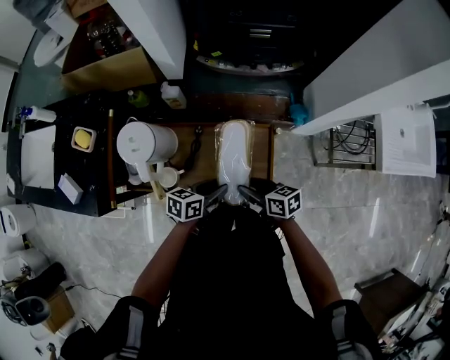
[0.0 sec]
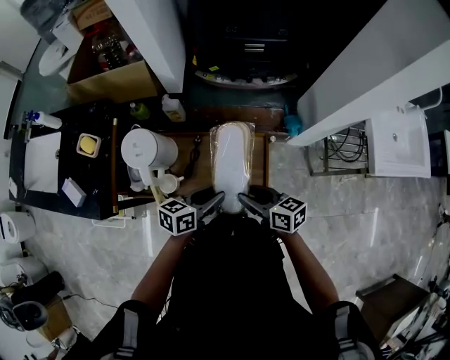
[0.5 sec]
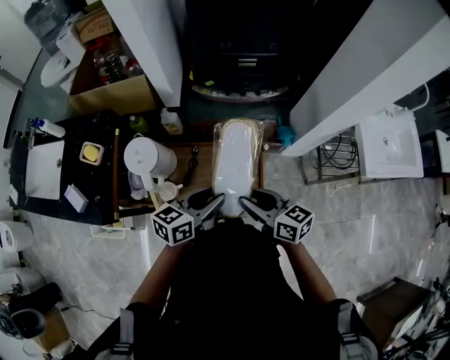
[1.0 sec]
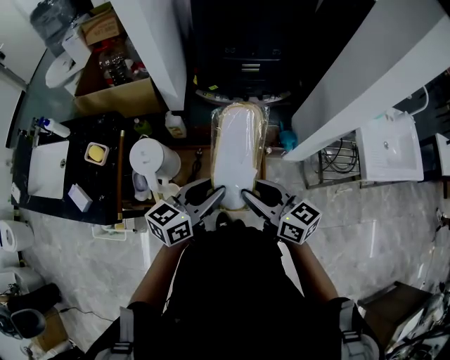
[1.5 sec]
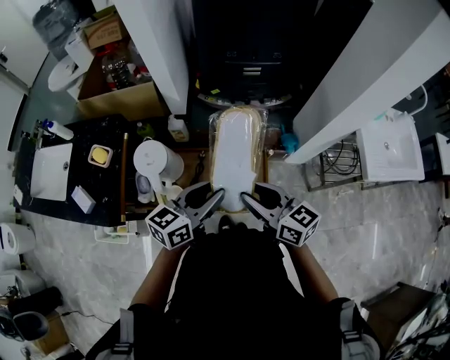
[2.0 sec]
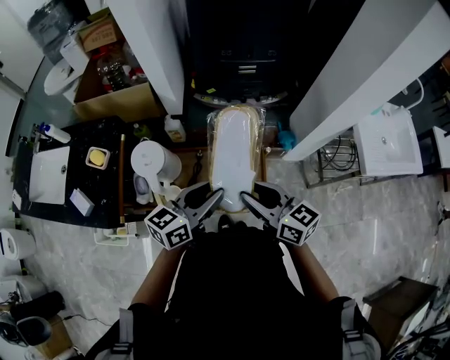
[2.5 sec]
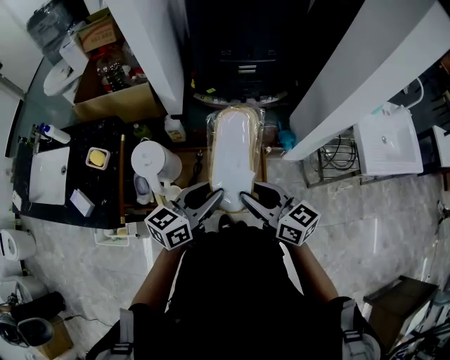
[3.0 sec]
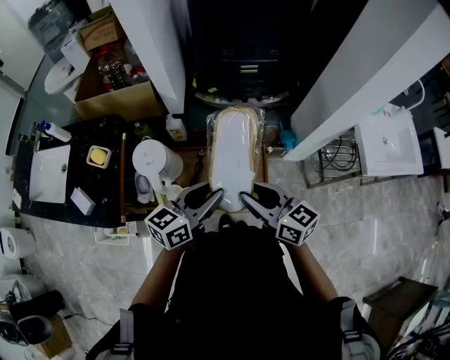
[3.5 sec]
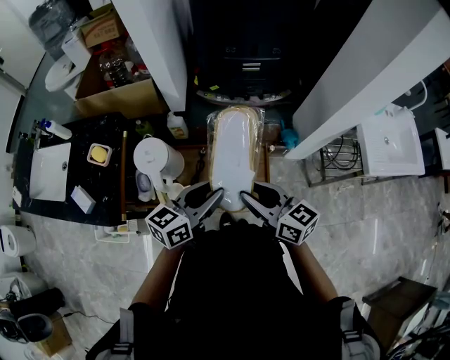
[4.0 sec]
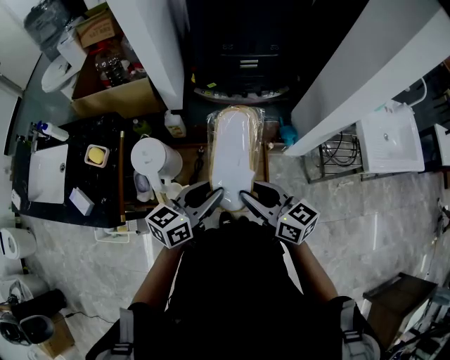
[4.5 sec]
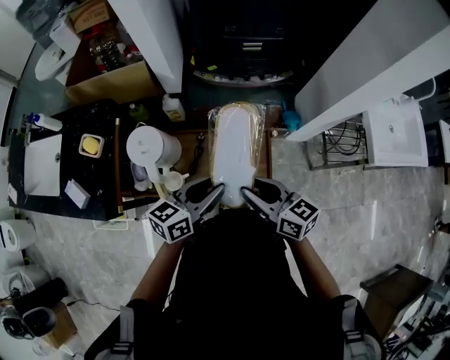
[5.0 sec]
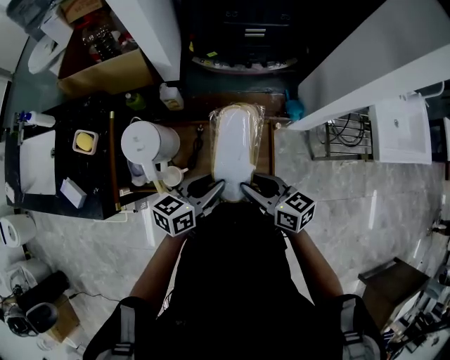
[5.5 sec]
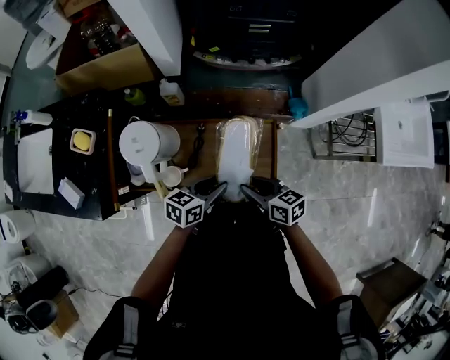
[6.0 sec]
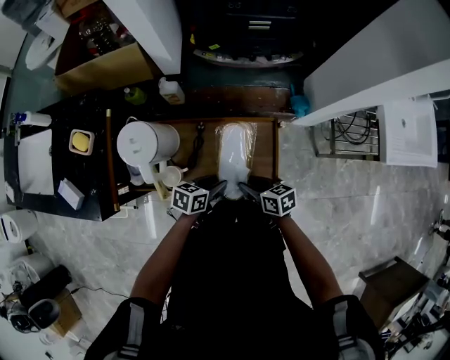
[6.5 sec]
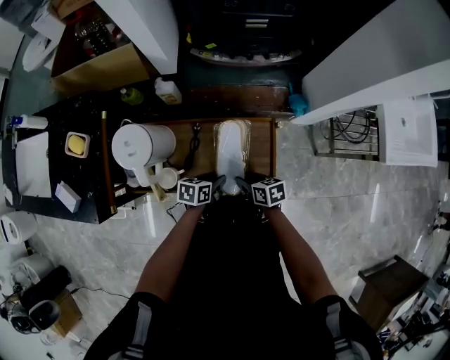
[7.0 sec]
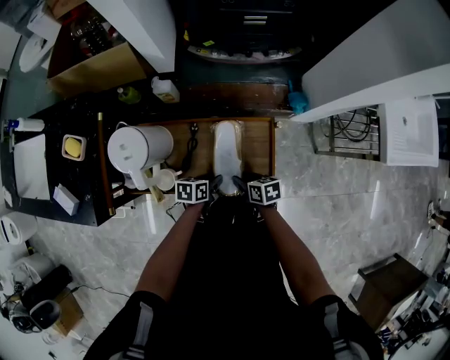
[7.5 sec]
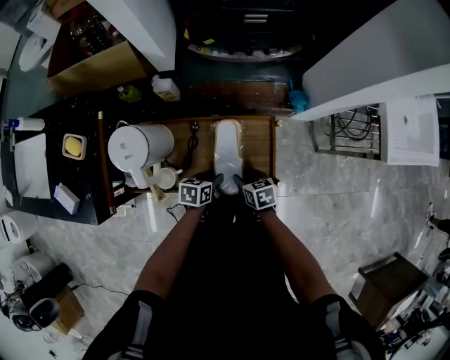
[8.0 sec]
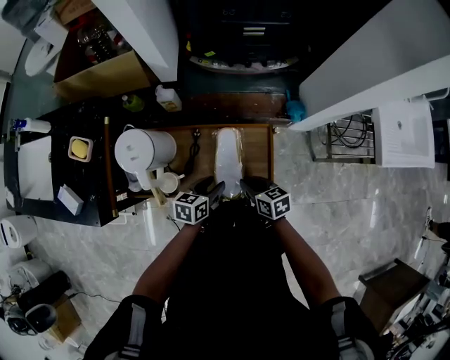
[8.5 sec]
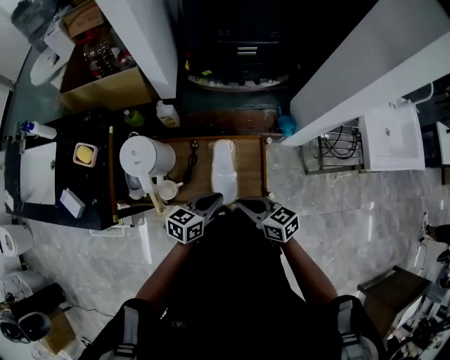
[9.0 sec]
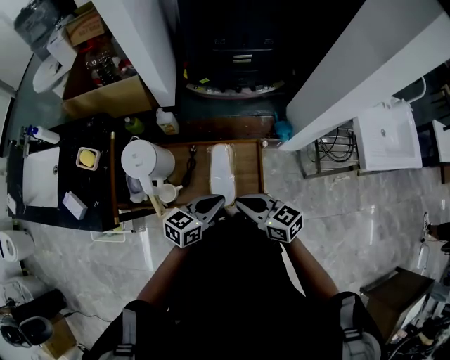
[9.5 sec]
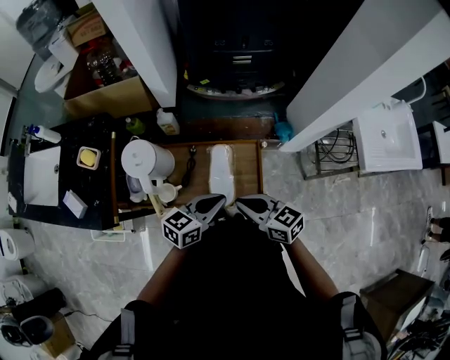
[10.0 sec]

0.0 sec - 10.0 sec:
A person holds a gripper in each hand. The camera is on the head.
0.0 sec - 2.0 sec: The grippers both shift upward by roughly 25 cm. The right gripper changes its angle by some 30 degrees. The left gripper changes its angle by some 30 degrees.
2.0 sec - 4.0 sec: Neither gripper changes place.
4.0 sec - 6.0 sec: The two grippers go approximately 20 cm downward. The right gripper rotates some 30 degrees; the left gripper rotates roughly 20 degrees.
6.0 sec - 8.0 sec: Both grippers move downward, approximately 15 cm. The left gripper rotates about 20 degrees, while the right gripper rotates roughly 20 degrees.
8.0 sec - 10.0 sec: The grippers both shift upward by approximately 25 cm. The right gripper points its fingers some 30 degrees further upward, and closes up. Meanwhile the left gripper tips its fingers upward by roughly 30 degrees, and closes.

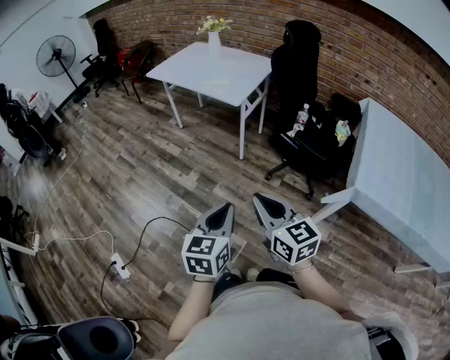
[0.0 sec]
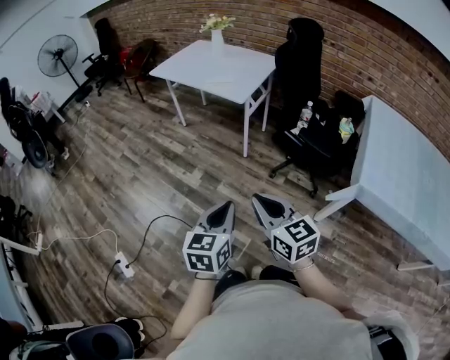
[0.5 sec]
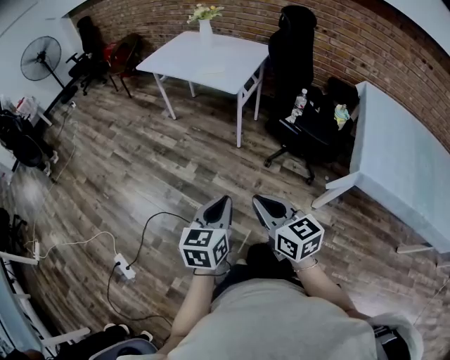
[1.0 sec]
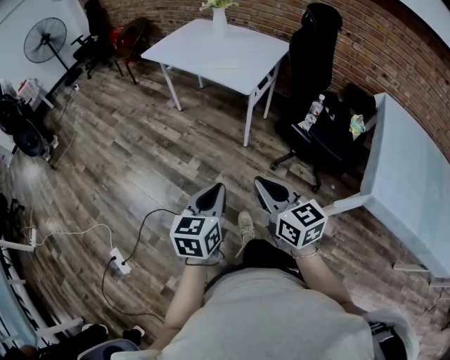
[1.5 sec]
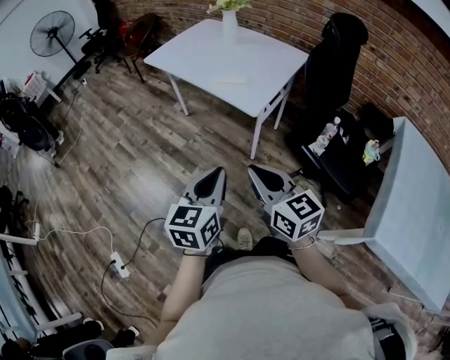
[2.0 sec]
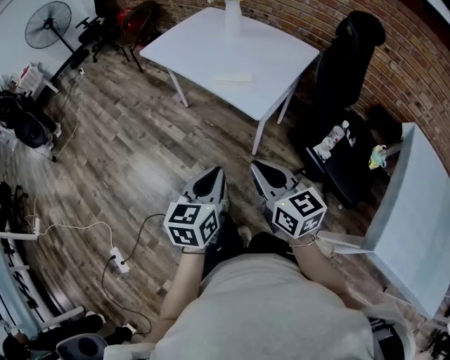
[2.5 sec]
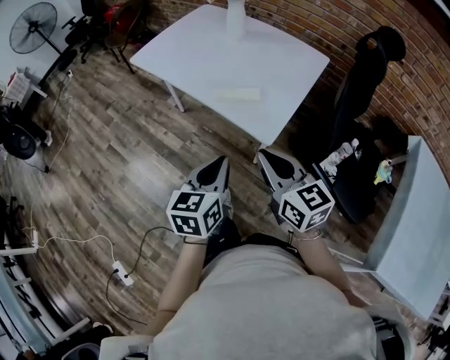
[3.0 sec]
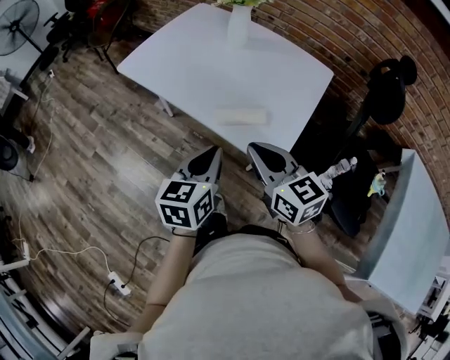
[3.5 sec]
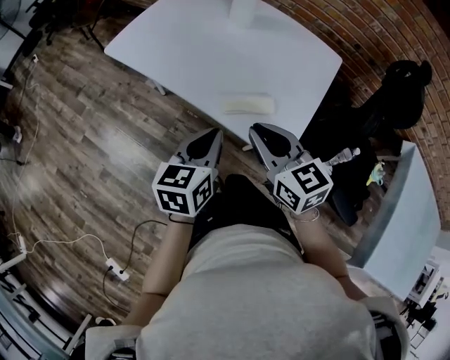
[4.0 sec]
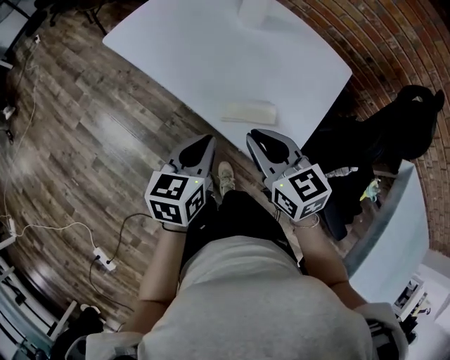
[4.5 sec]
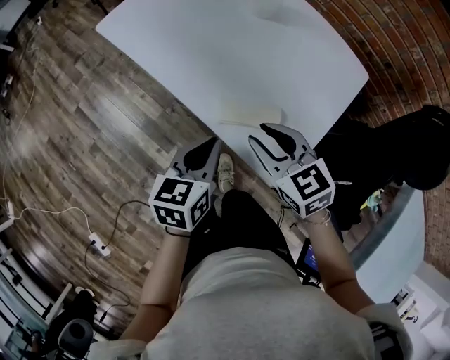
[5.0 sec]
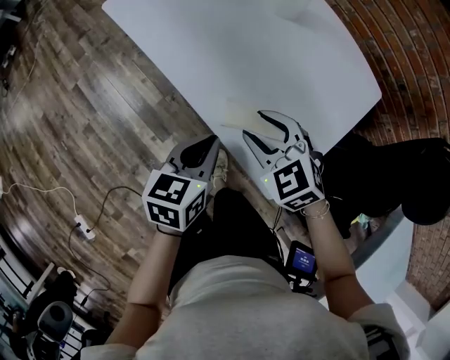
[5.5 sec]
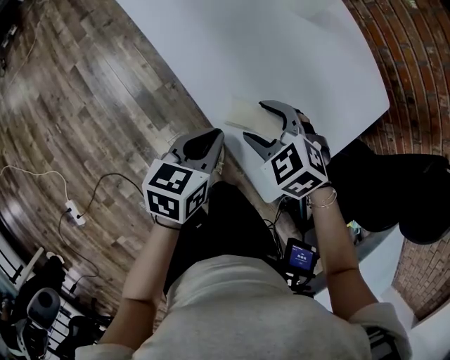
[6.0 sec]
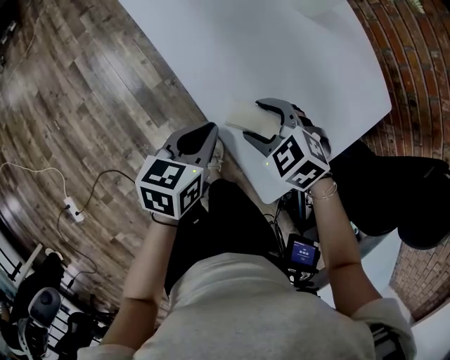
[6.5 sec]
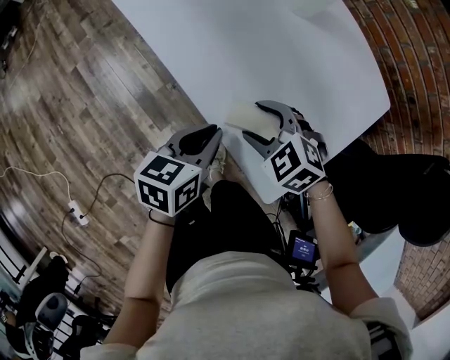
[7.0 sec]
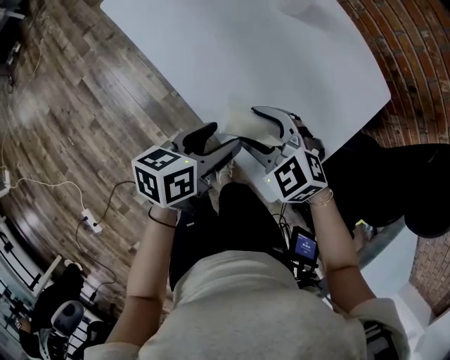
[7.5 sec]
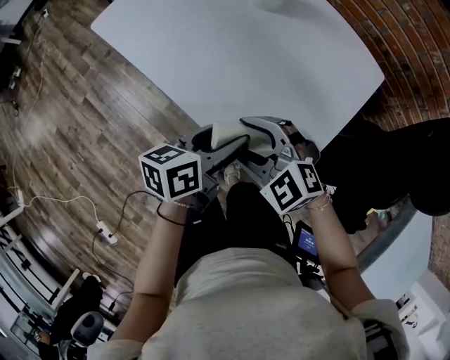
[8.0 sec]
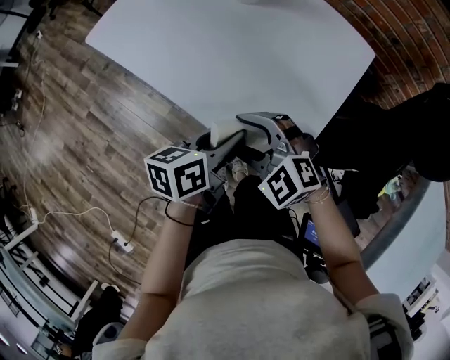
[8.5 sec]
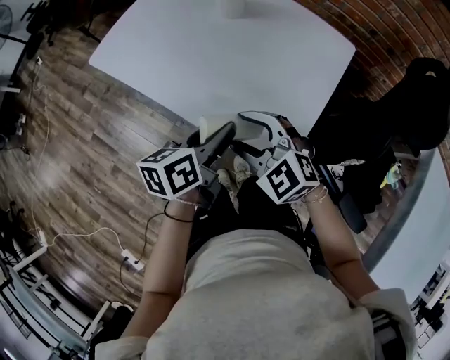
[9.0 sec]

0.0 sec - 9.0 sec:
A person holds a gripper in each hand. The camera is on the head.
0.0 sec - 2.0 sec: Both grippers move forward, some 30 cm.
2.0 sec - 4.5 sec: The two grippers travel together, forward, roughly 50 cm.
4.5 sec - 7.0 sec: The right gripper goes about 20 cm downward and forward, tips its fingers downward by some 30 degrees, and opens up. The left gripper goes approximately 10 cm downward and forward.
7.0 sec - 9.0 sec: The right gripper moves upward and backward, approximately 15 cm, and changes its angle by some 30 degrees; the left gripper goes about 10 cm upward and to the right, and opens its fingers.

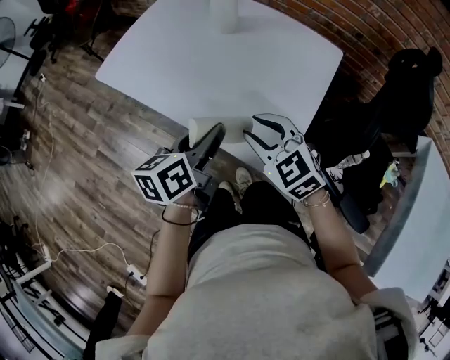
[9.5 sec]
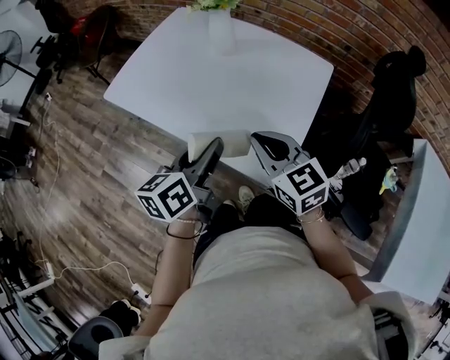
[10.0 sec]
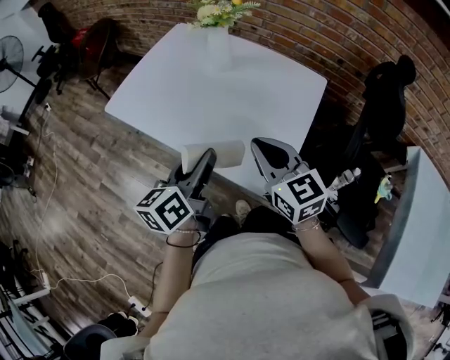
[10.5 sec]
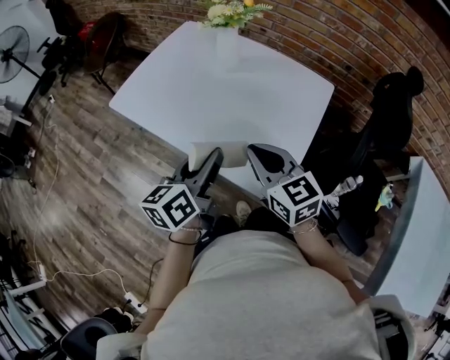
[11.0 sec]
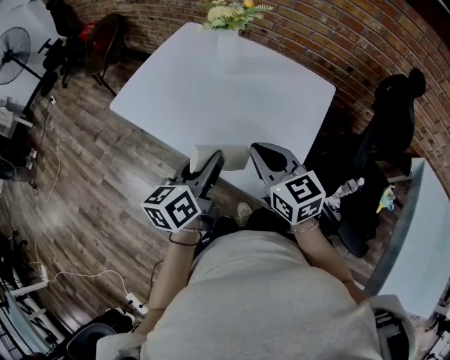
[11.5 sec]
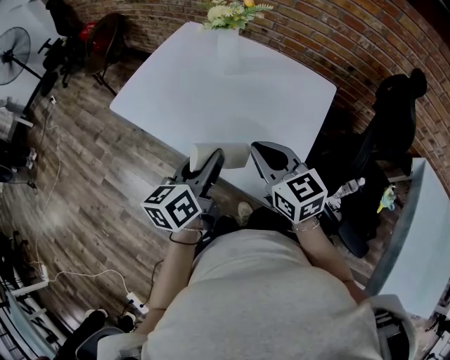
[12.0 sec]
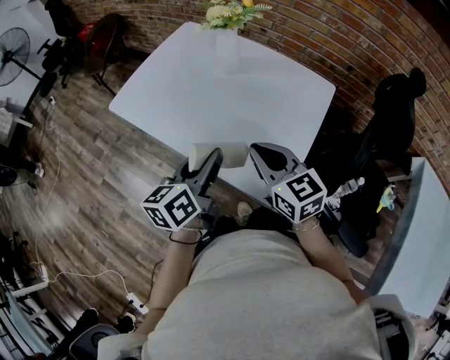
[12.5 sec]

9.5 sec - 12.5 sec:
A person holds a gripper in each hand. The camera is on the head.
9.5 sec - 11.0 sec: The grippers both shift upward by roughly 5 cm. The right gripper swivels about 30 degrees, and closes its fingers.
11.0 sec - 12.5 sec: The grippers stay close to where they were, moving slightly.

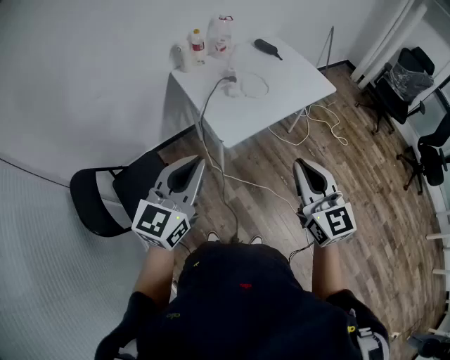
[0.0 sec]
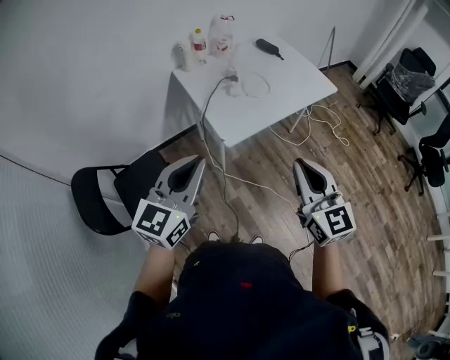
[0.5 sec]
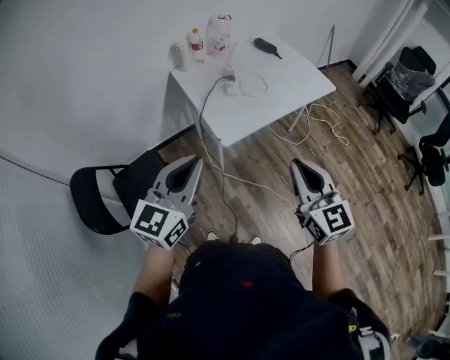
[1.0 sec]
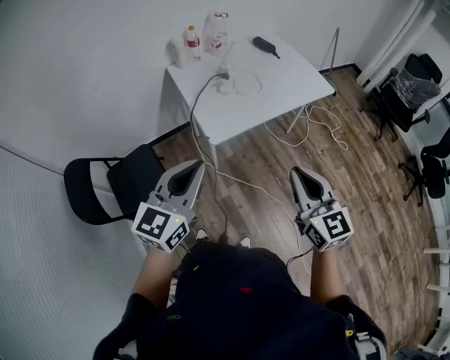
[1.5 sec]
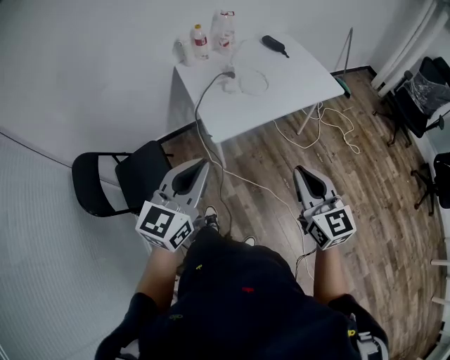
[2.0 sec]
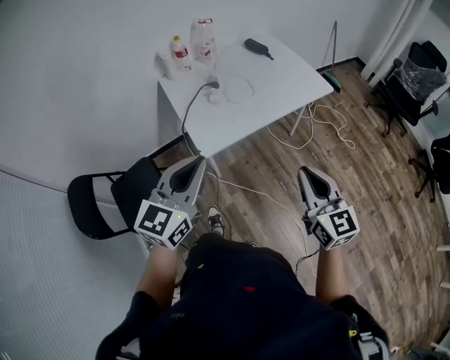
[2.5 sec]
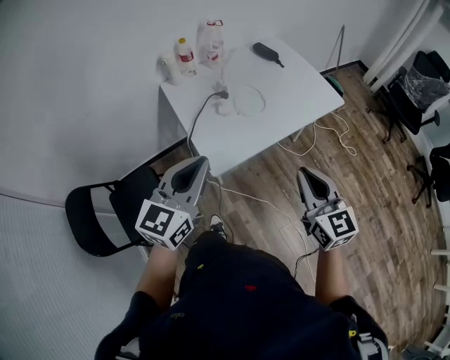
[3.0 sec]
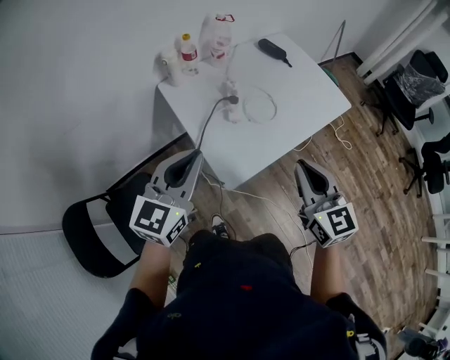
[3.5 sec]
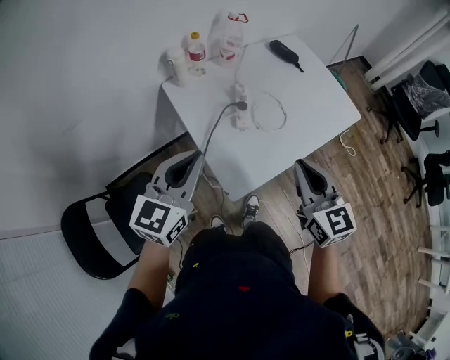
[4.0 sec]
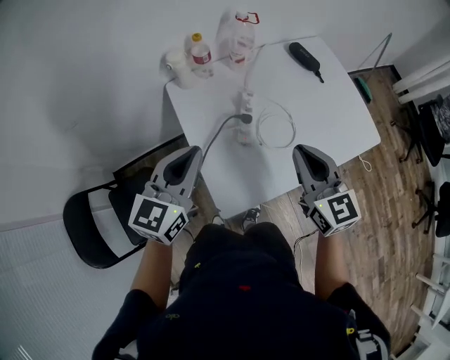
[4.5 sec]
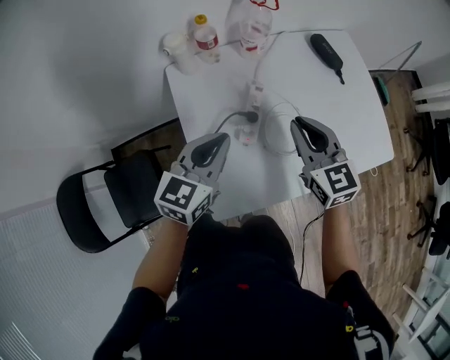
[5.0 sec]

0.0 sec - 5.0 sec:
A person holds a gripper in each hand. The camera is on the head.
0.0 sec - 2.5 sec: The right gripper travels to the right by some 15 cm; the left gripper travels to the right and forward by approximately 15 cm.
2.5 sec - 5.0 sec: The two grippers travel together, forward, approximately 50 cm. The right gripper swivels some 20 degrees.
